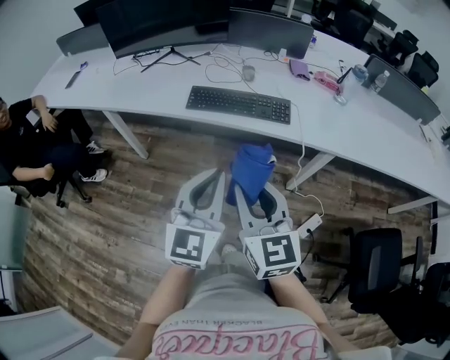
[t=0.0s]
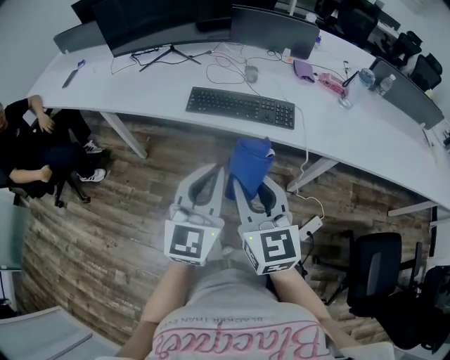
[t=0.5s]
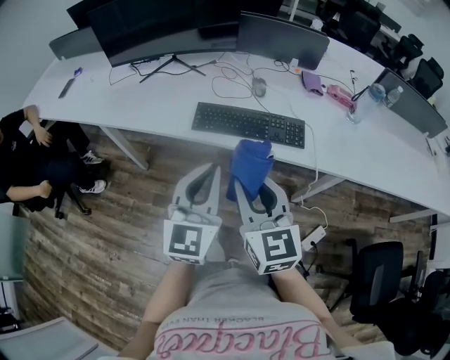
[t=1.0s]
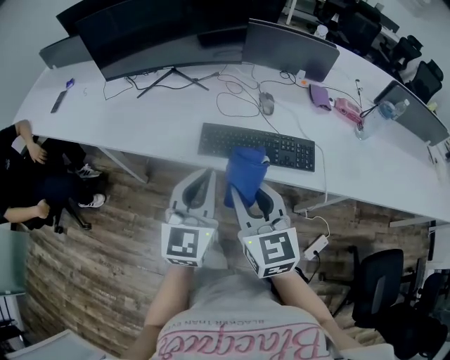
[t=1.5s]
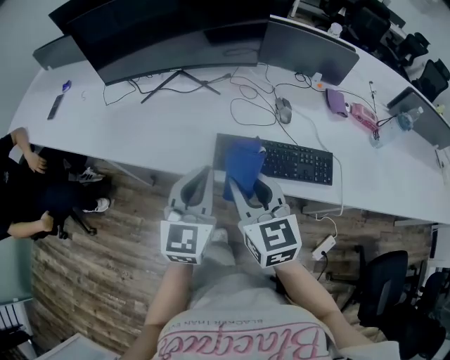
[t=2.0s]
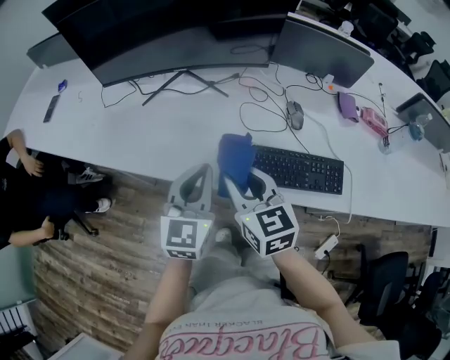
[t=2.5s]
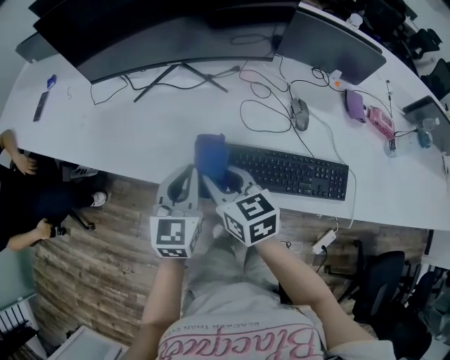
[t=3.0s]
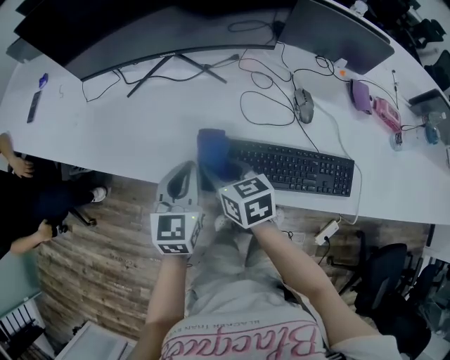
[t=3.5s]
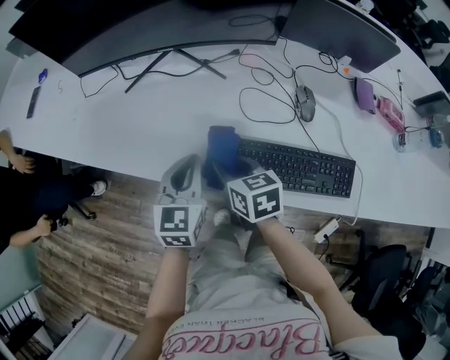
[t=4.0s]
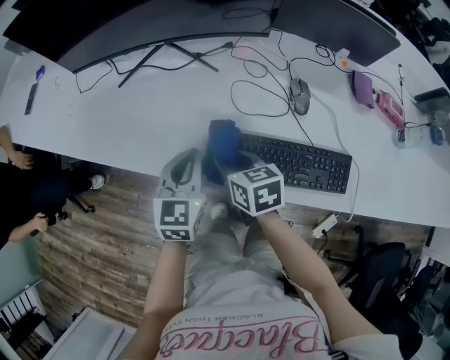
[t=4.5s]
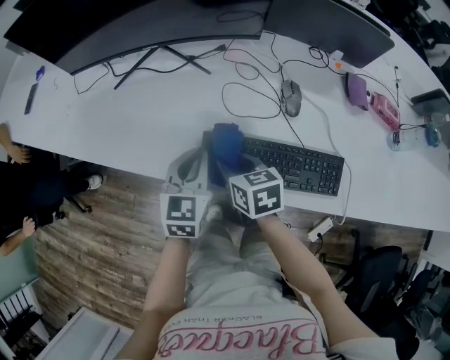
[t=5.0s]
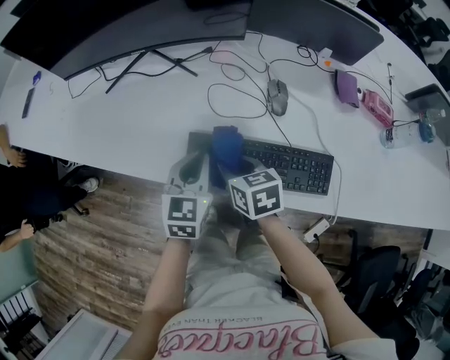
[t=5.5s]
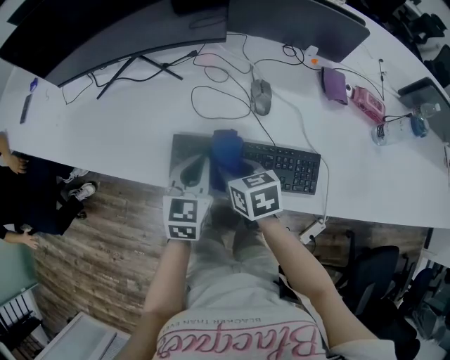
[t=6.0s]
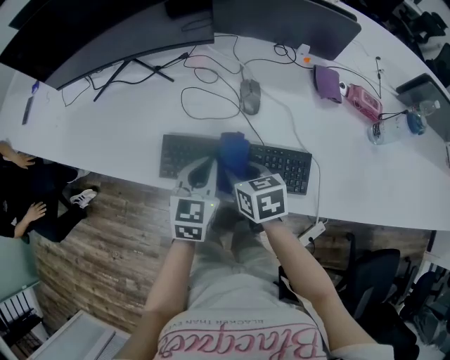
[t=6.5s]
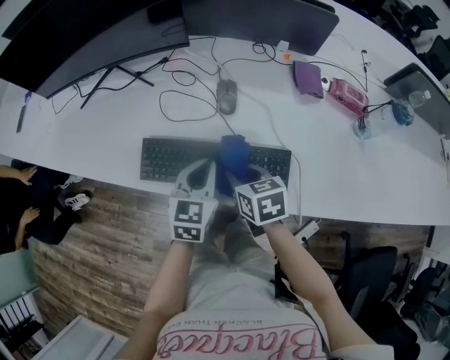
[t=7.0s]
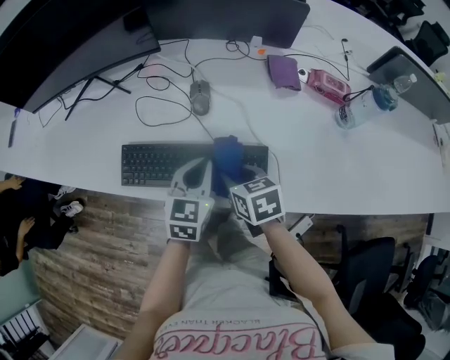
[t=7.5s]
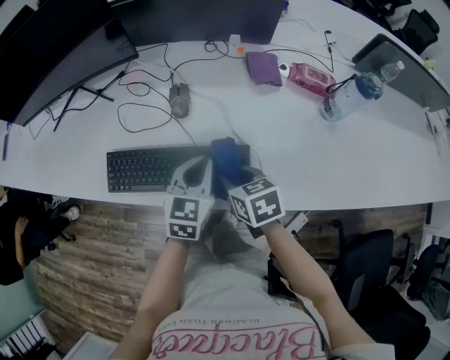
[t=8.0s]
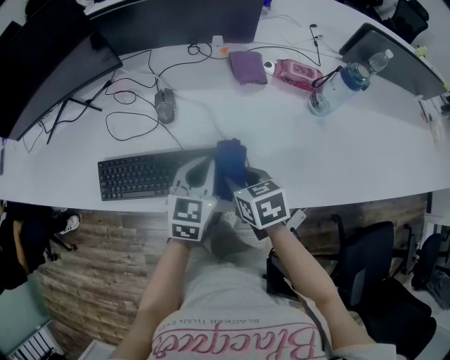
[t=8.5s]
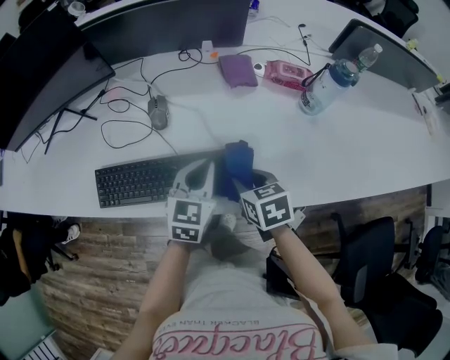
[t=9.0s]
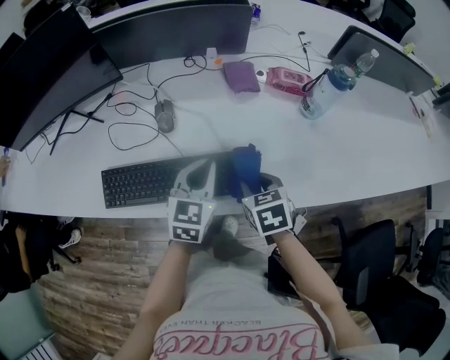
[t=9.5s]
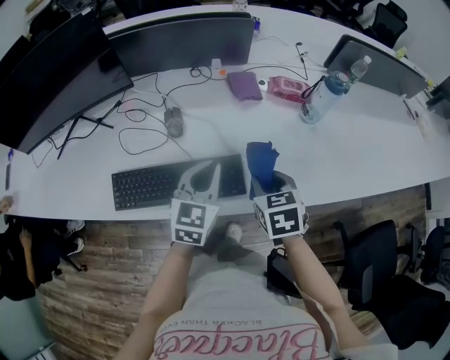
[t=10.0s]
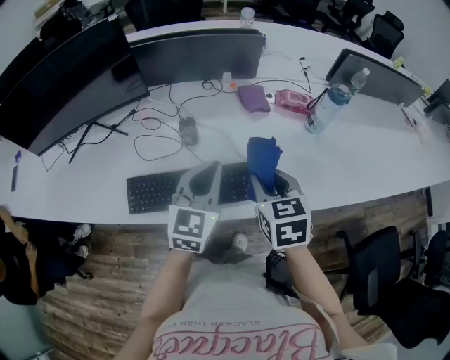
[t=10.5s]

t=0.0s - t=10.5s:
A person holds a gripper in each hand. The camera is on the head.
t=0.0s - t=2.0s: Both grippers move forward and to the left, some 40 cm.
t=2.0s - t=4.0s: The left gripper goes roughly 20 cm forward and downward. Meanwhile the right gripper moves downward and forward, roughly 25 cm, and turns by approximately 30 degrees.
t=4.0s - t=6.5s: Both grippers travel together to the right, some 20 cm.
t=6.5s - t=8.5s: Both grippers move to the right, roughly 20 cm.
t=8.5s - t=10.5s: Both grippers move upward, some 15 cm. The right gripper rotates about 30 degrees.

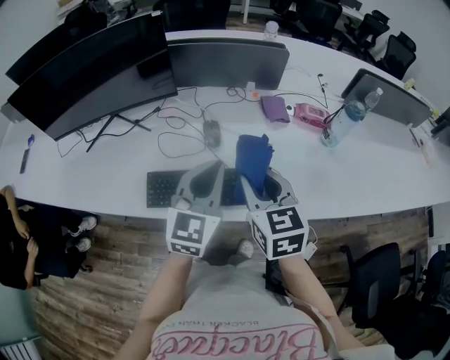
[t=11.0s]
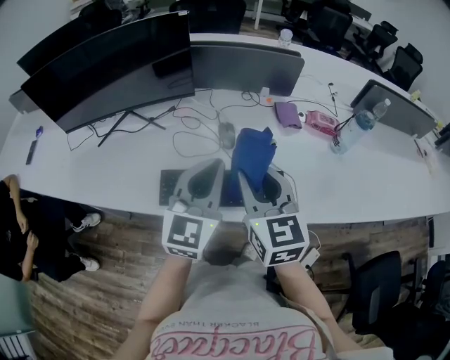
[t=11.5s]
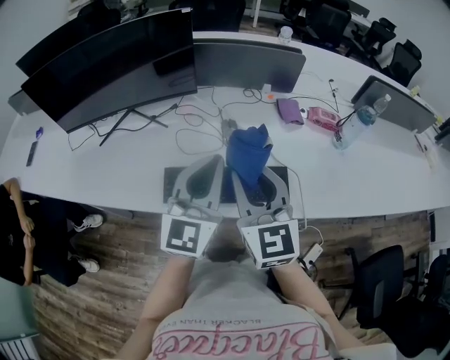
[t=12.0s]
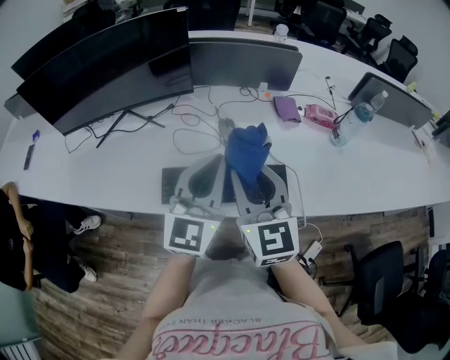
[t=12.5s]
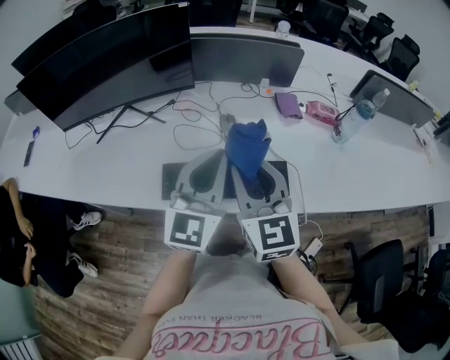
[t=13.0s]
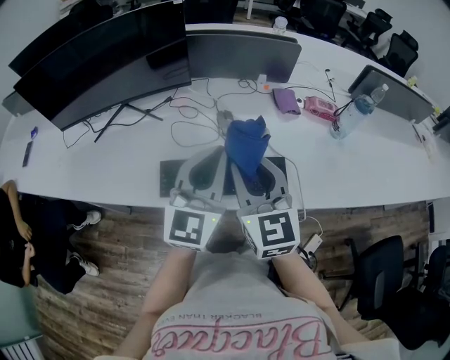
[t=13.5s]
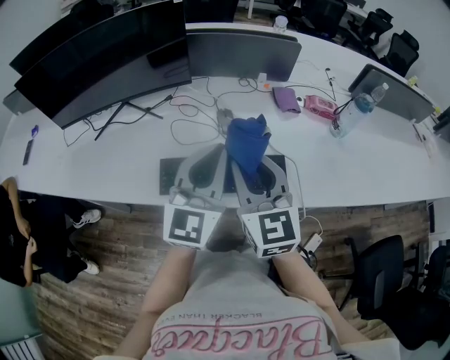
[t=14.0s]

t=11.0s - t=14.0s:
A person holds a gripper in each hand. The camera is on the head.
t=11.0s - t=12.5s: The left gripper shifts approximately 5 cm to the left, while the right gripper moves to the left and upward, roughly 10 cm, and turns by roughly 20 degrees.
t=12.5s - t=14.0s: The two grippers keep their place.

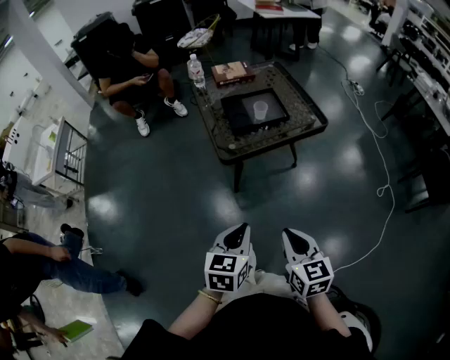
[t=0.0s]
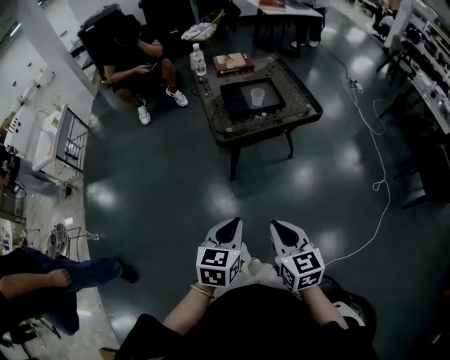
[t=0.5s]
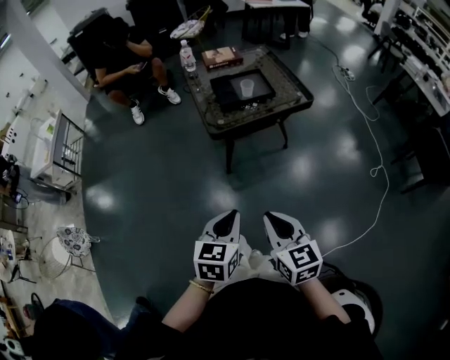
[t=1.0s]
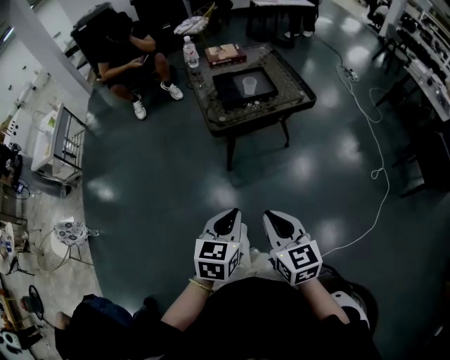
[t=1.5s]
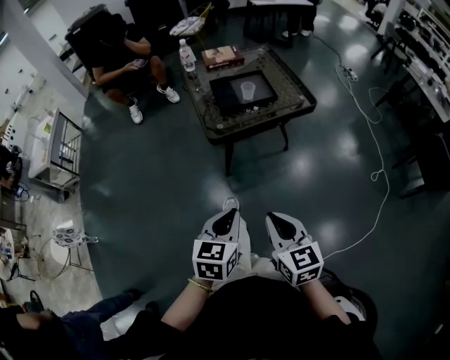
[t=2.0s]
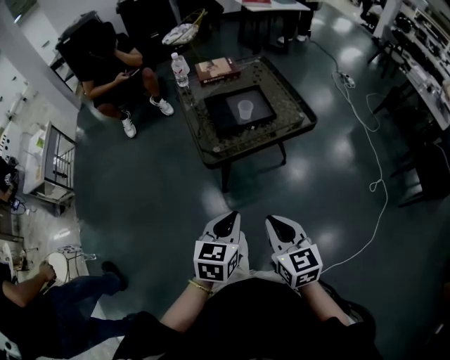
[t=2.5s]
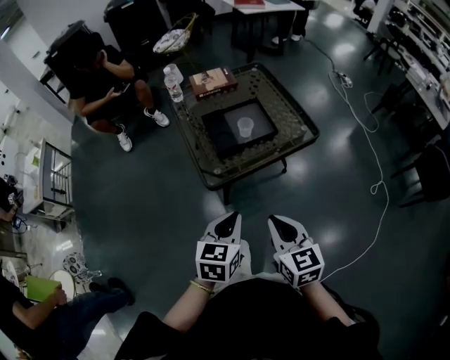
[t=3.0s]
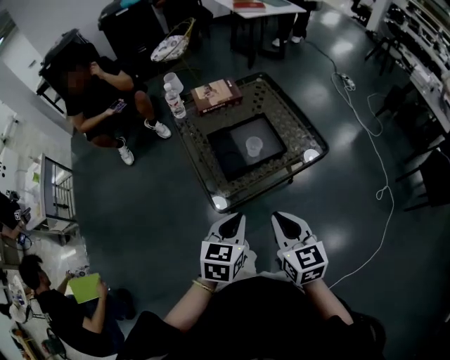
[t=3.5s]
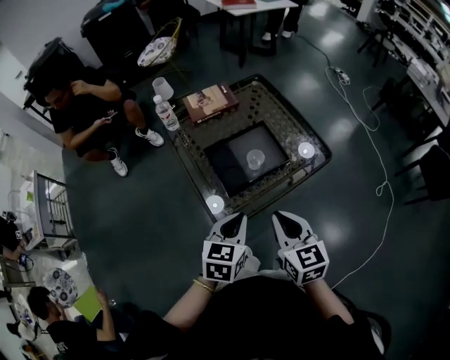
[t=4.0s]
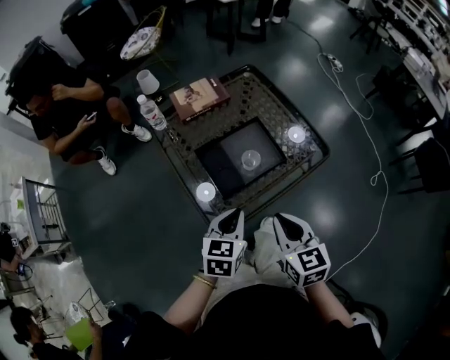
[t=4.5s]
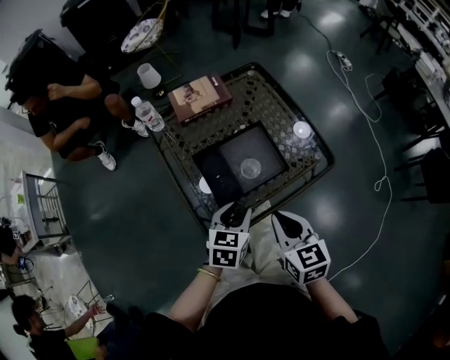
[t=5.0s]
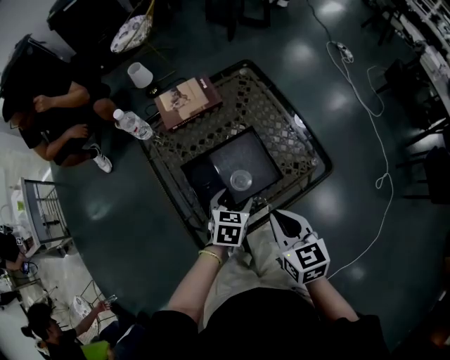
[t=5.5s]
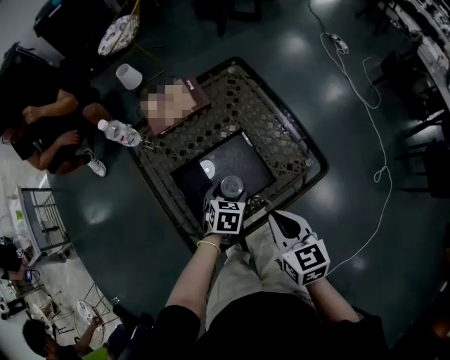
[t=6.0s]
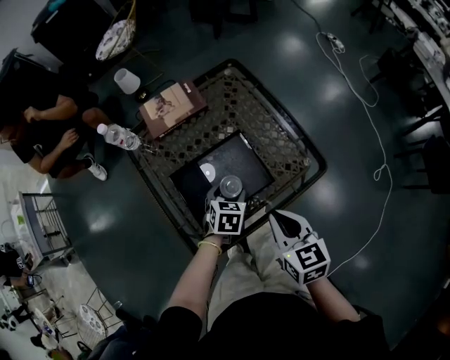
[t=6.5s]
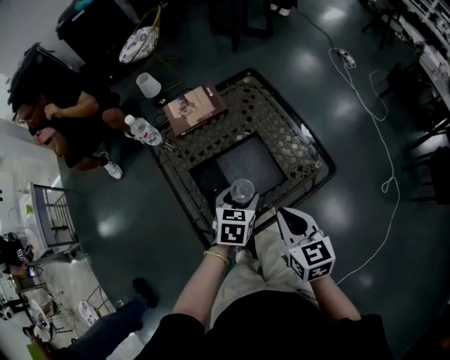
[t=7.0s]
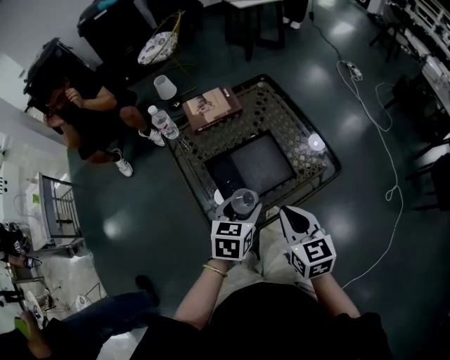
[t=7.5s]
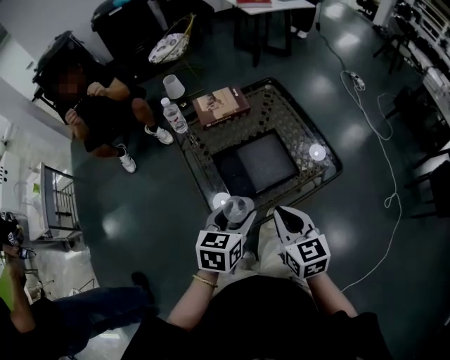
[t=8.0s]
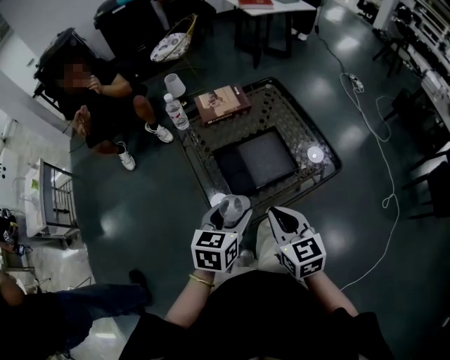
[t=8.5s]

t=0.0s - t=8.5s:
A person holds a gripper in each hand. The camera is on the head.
t=2.0s - t=4.0s: The two grippers go about 40 cm forward.
t=4.0s - t=6.5s: The left gripper moves forward and downward, about 30 cm, swivels approximately 20 degrees, and opens its fingers, while the right gripper is displaced forward, to the right and downward by some 20 cm.
t=6.5s - t=8.5s: The right gripper is displaced to the left, backward and upward by some 15 cm. Meanwhile the left gripper travels upward, backward and to the left by approximately 30 cm, and rotates approximately 30 degrees.

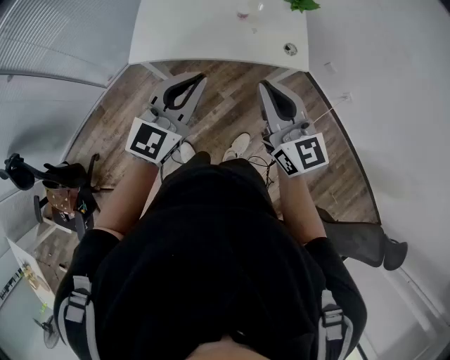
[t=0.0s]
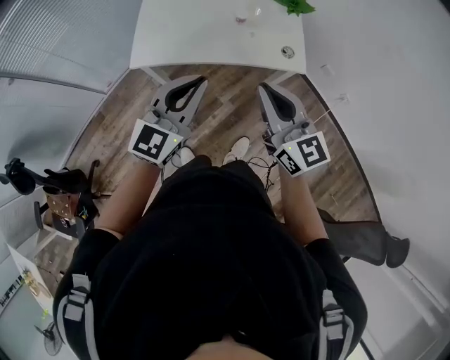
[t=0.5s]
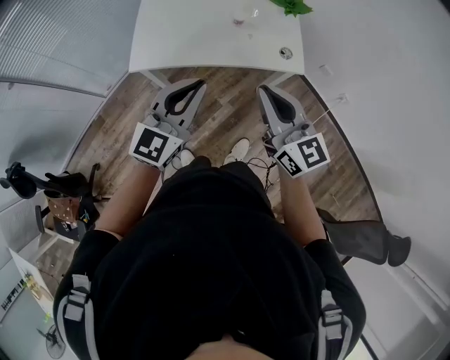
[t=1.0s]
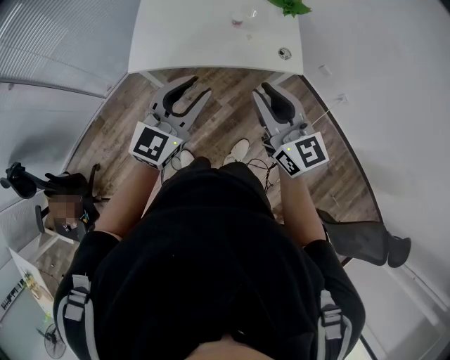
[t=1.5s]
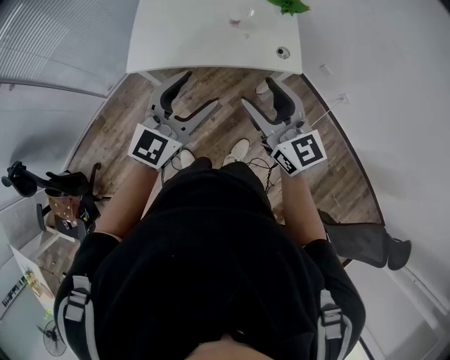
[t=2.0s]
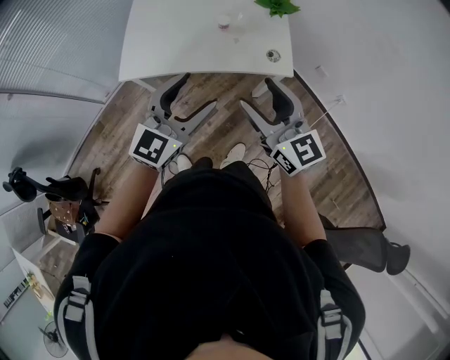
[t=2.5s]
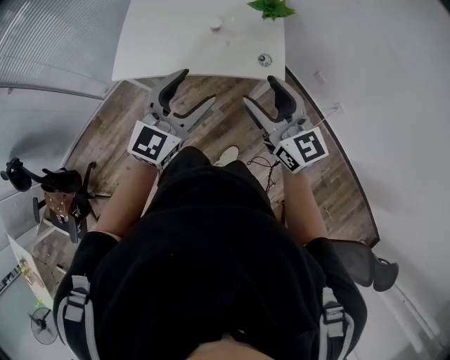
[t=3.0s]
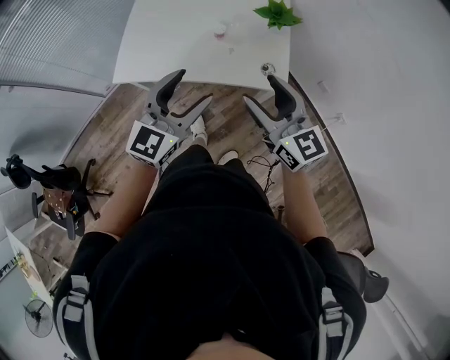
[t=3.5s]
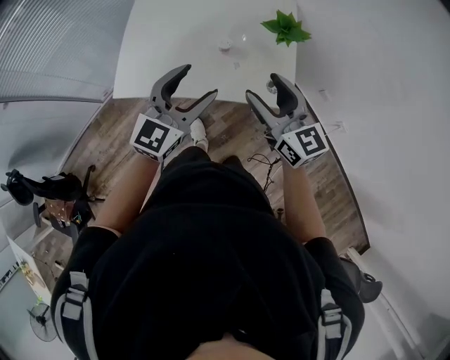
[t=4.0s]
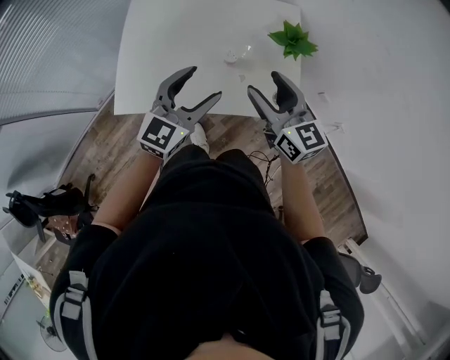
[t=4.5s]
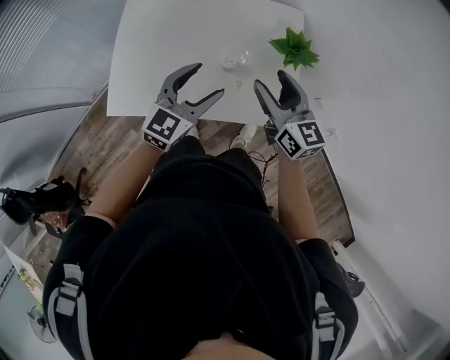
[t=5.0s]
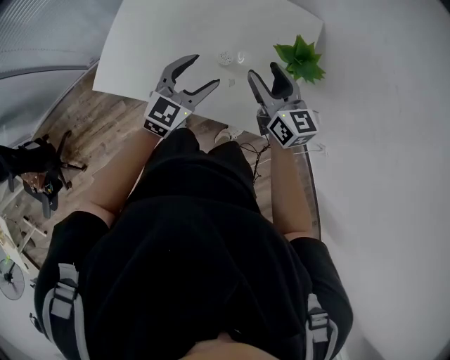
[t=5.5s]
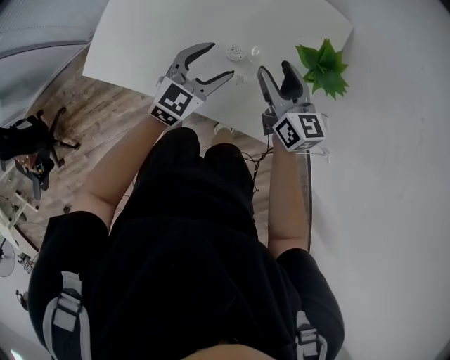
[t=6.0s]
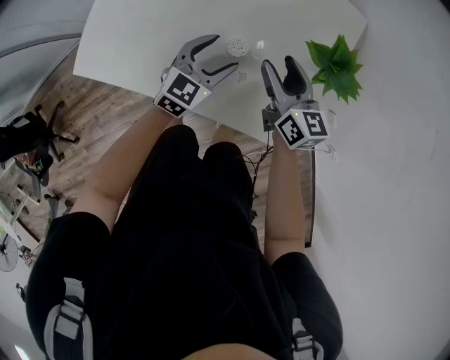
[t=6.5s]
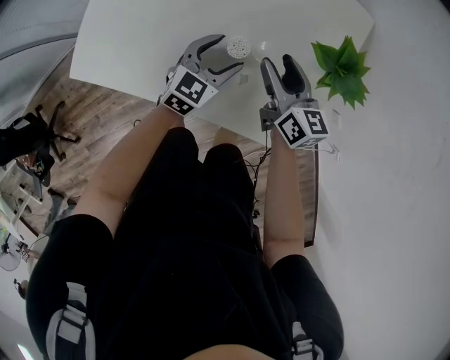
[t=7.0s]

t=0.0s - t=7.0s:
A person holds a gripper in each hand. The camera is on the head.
t=0.0s - t=2.0s: The left gripper opens up. Meanwhile the right gripper opens its fingers.
t=2.0s - t=3.5s: Both grippers move to the right and forward, approximately 15 cm.
t=3.5s - t=5.0s: The grippers both shift forward by about 25 cm.
t=5.0s - t=7.0s: The left gripper goes about 25 cm downward, and rotates roughly 20 degrees. The right gripper shifts approximately 25 cm downward and forward.
